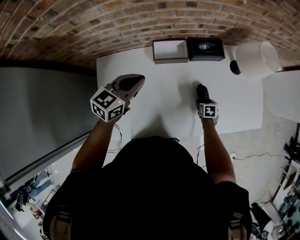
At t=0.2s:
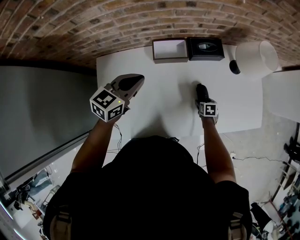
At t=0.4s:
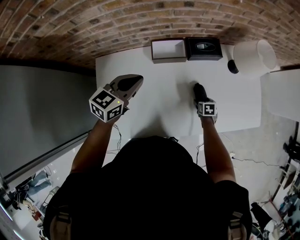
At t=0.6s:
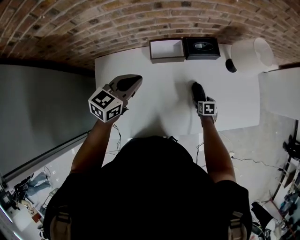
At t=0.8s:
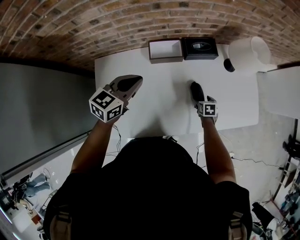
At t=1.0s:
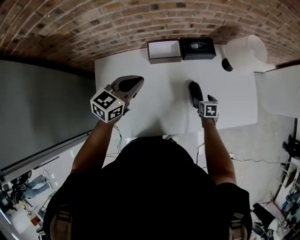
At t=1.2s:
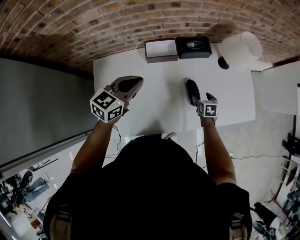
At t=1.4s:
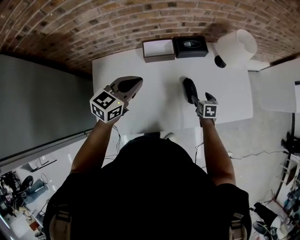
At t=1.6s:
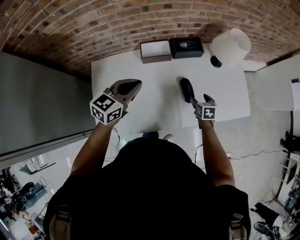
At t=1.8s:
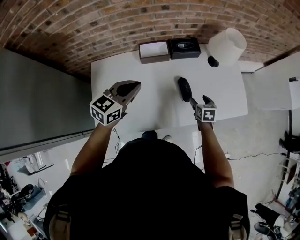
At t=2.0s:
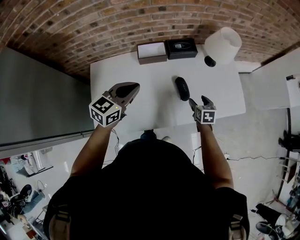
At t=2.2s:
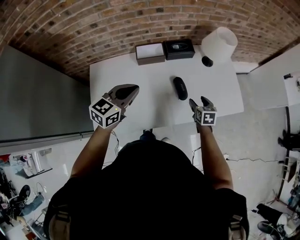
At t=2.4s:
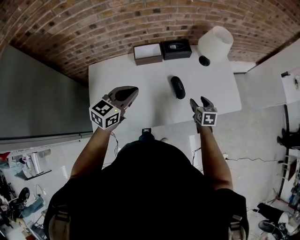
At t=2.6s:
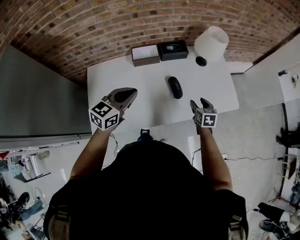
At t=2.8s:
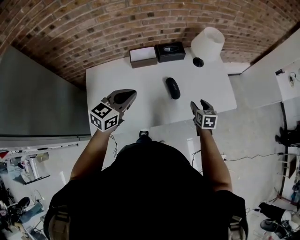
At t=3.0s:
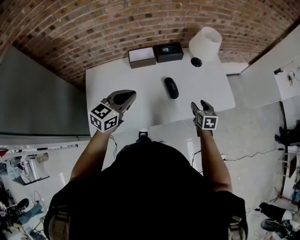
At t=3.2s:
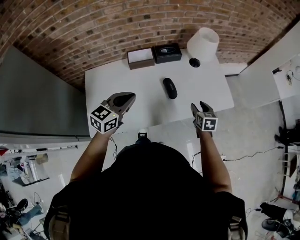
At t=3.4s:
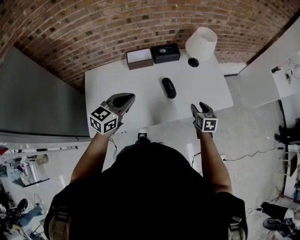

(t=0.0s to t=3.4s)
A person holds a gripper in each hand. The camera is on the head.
t=0.0s - t=1.6s: The right gripper is displaced upward by approximately 15 cm, while the left gripper travels backward, to the right and upward by some 15 cm.
t=1.6s - t=3.4s: The left gripper moves backward and to the right, roughly 15 cm. The right gripper shifts roughly 20 cm upward, to the right and backward, and closes its fingers.

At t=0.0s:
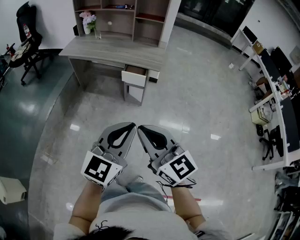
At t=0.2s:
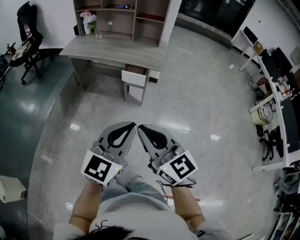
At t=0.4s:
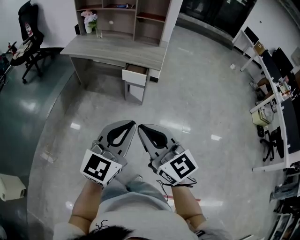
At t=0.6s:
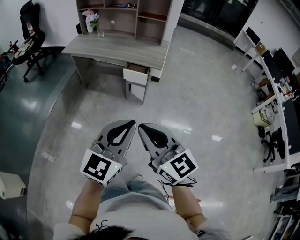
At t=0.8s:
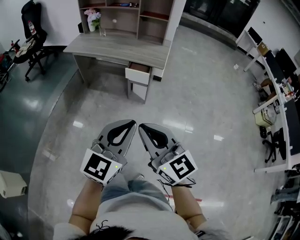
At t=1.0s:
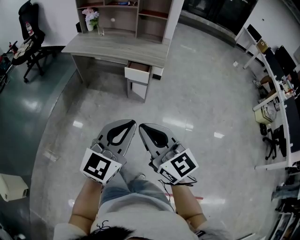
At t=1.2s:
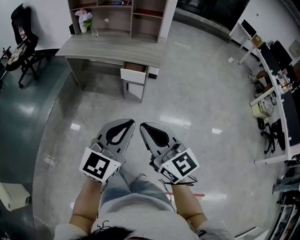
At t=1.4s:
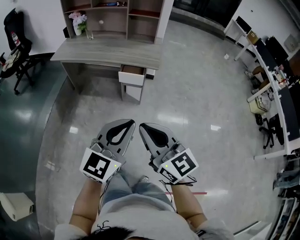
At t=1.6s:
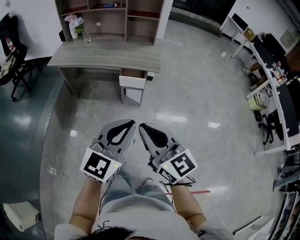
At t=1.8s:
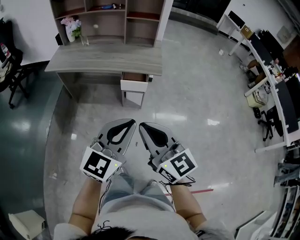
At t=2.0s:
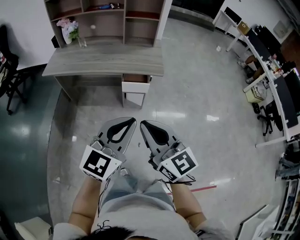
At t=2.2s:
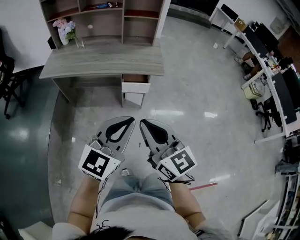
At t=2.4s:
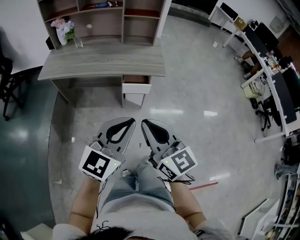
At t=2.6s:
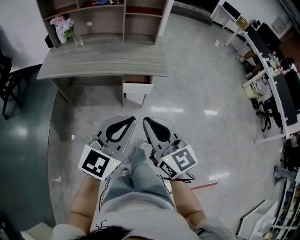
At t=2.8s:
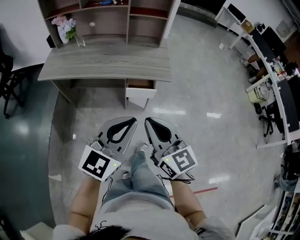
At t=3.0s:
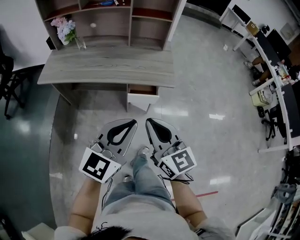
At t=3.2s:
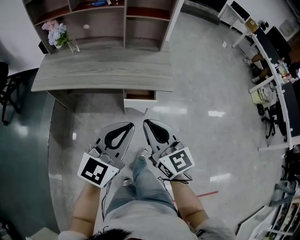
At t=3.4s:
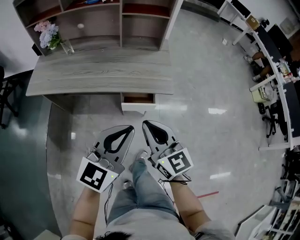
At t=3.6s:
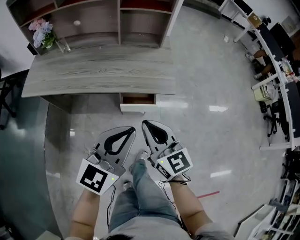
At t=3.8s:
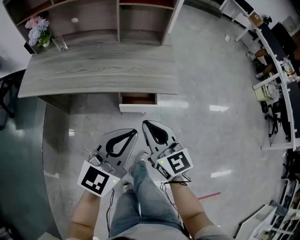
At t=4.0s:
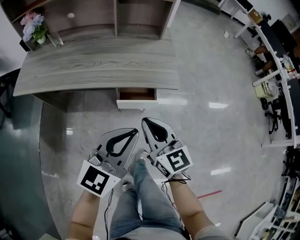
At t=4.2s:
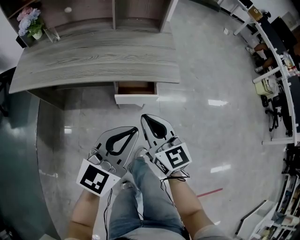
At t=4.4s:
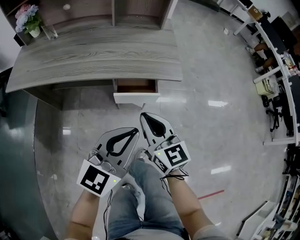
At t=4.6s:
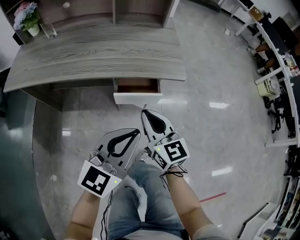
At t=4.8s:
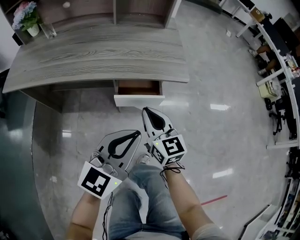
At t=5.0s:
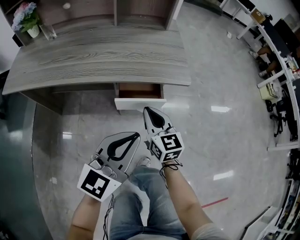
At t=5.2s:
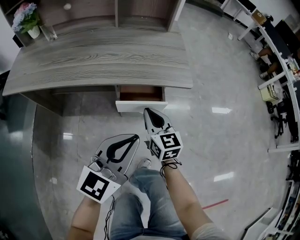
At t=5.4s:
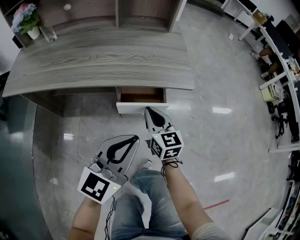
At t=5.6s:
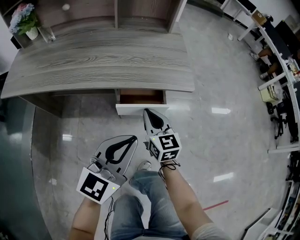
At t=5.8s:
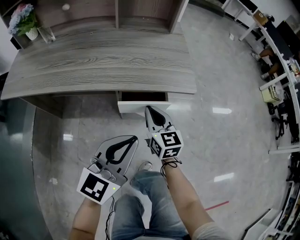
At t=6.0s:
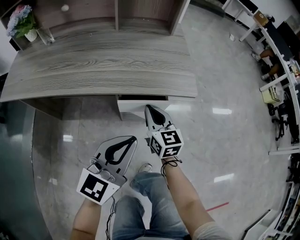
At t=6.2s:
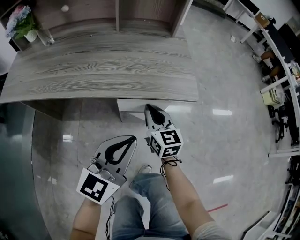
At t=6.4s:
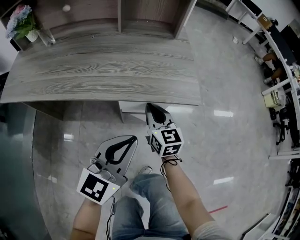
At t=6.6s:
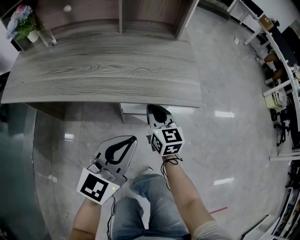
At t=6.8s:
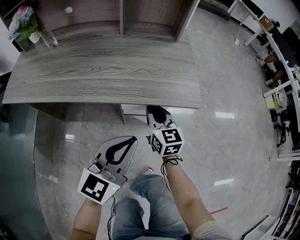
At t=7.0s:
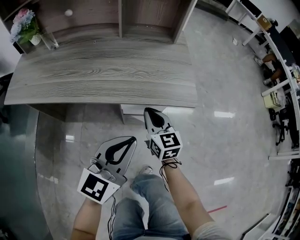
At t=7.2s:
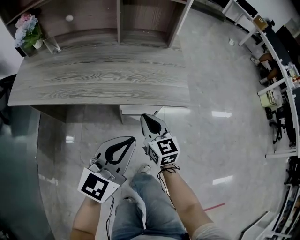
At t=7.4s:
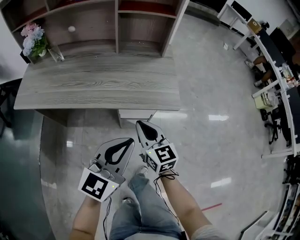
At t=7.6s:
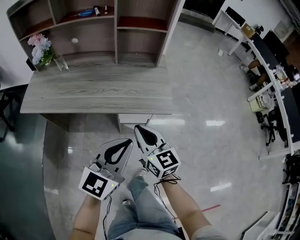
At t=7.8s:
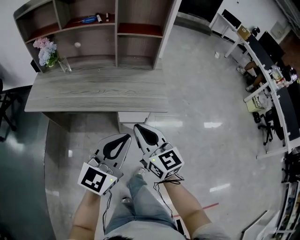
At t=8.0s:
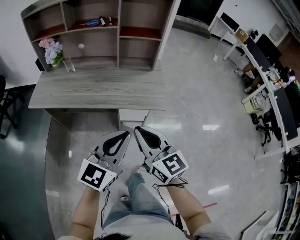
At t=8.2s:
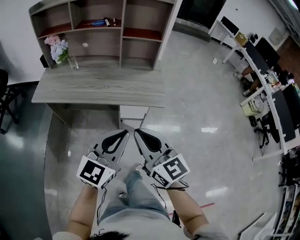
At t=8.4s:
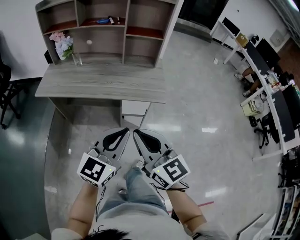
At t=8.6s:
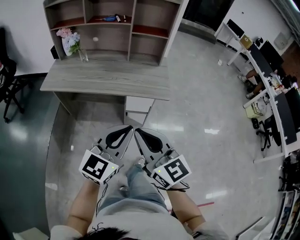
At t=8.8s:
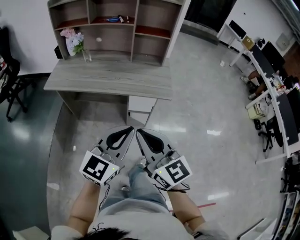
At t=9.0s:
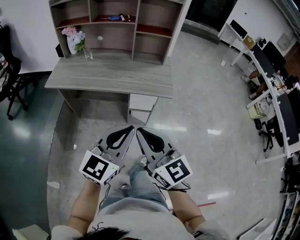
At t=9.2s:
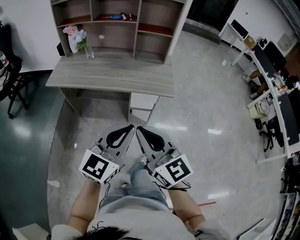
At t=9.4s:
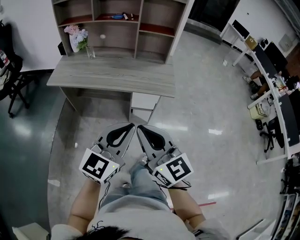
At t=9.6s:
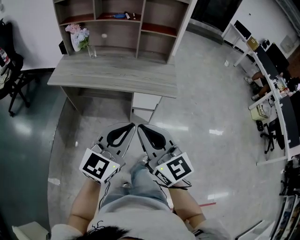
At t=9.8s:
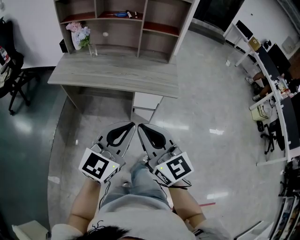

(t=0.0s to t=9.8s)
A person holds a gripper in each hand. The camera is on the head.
t=0.0s - t=1.4s: The two grippers go roughly 5 cm forward.
t=1.4s - t=2.8s: The two grippers go about 25 cm forward and to the left.
t=2.8s - t=4.2s: The grippers both shift downward and forward by roughly 25 cm.
t=4.2s - t=5.6s: The left gripper heads downward, covering some 10 cm, while the right gripper heads downward and forward, covering some 20 cm.
t=5.6s - t=7.0s: The right gripper heads forward, covering some 5 cm. The left gripper moves approximately 5 cm.
t=7.0s - t=8.4s: The left gripper goes about 30 cm upward and backward. Meanwhile the right gripper shifts roughly 50 cm upward and backward, and swivels approximately 20 degrees.
t=8.4s - t=9.8s: The left gripper shifts by roughly 5 cm.

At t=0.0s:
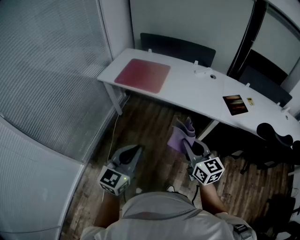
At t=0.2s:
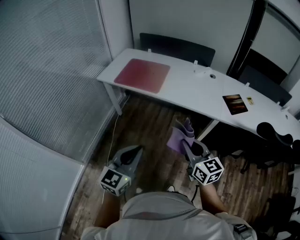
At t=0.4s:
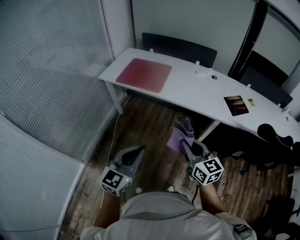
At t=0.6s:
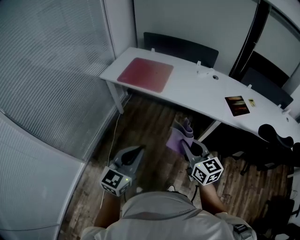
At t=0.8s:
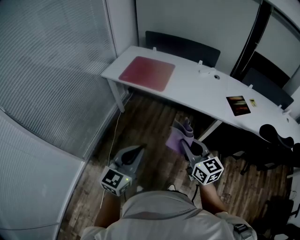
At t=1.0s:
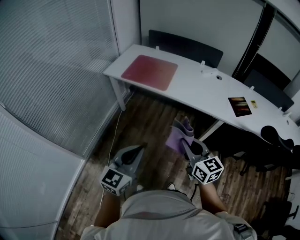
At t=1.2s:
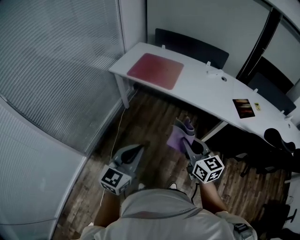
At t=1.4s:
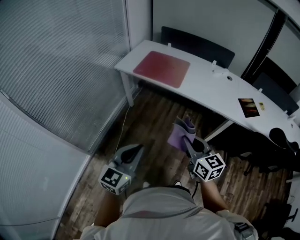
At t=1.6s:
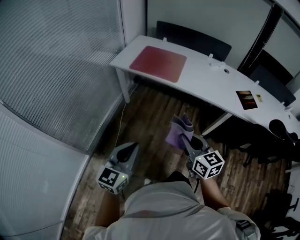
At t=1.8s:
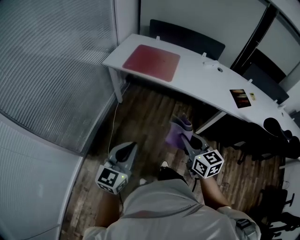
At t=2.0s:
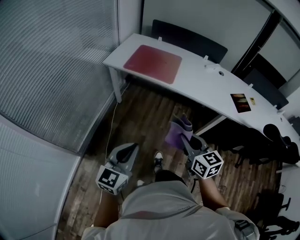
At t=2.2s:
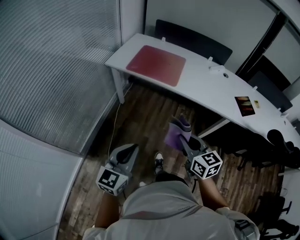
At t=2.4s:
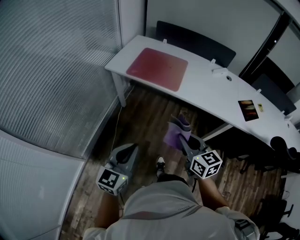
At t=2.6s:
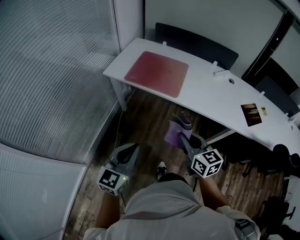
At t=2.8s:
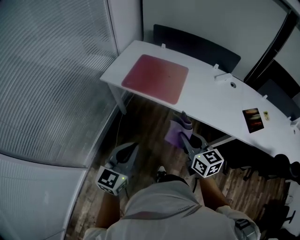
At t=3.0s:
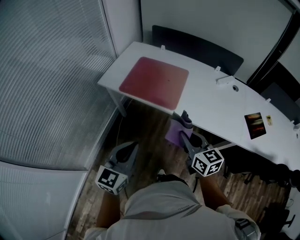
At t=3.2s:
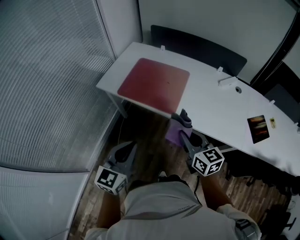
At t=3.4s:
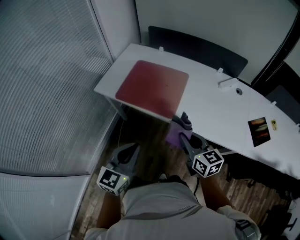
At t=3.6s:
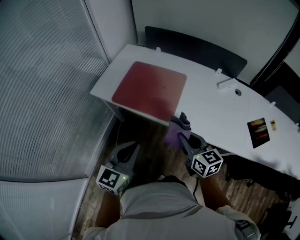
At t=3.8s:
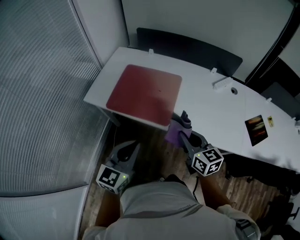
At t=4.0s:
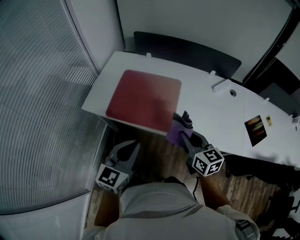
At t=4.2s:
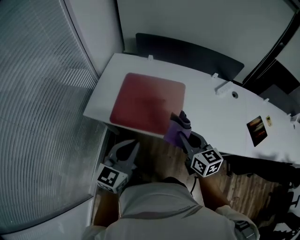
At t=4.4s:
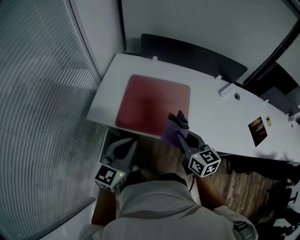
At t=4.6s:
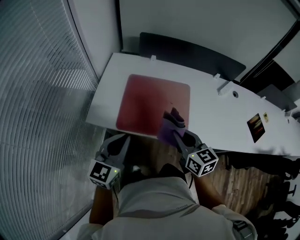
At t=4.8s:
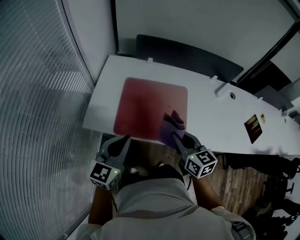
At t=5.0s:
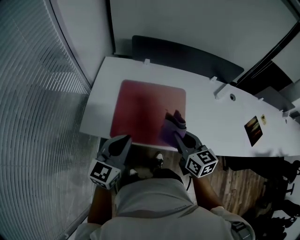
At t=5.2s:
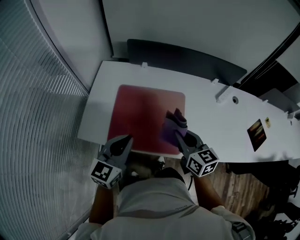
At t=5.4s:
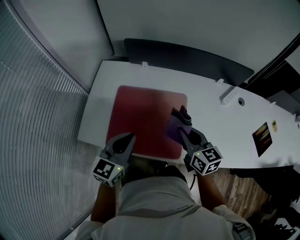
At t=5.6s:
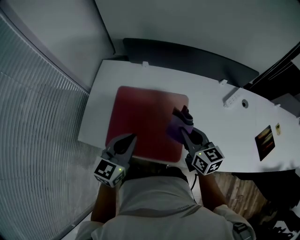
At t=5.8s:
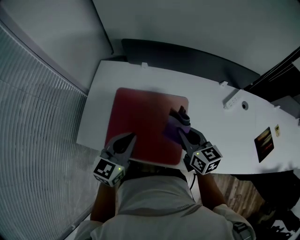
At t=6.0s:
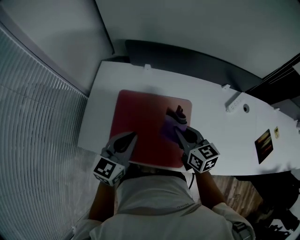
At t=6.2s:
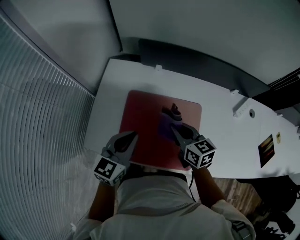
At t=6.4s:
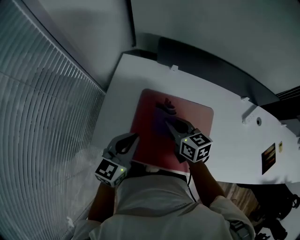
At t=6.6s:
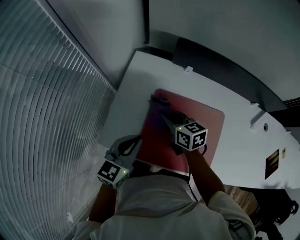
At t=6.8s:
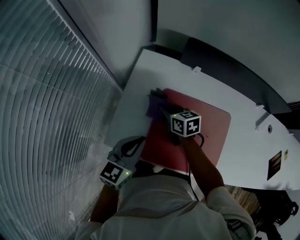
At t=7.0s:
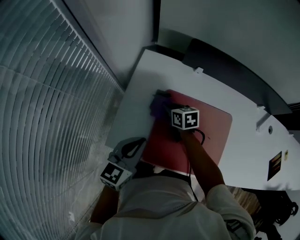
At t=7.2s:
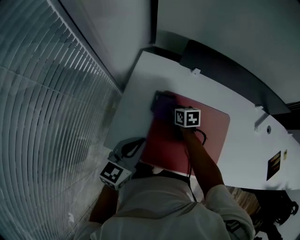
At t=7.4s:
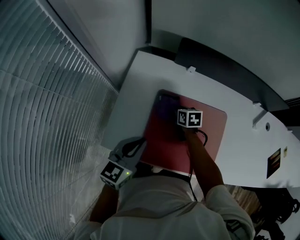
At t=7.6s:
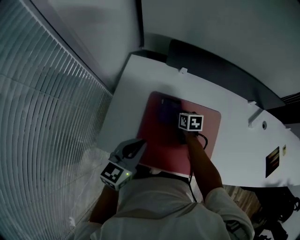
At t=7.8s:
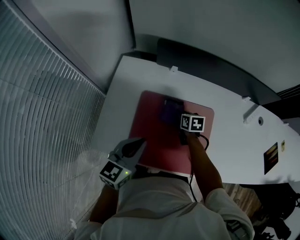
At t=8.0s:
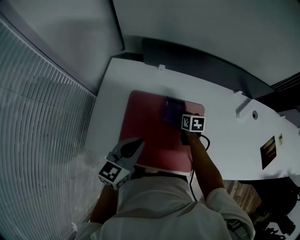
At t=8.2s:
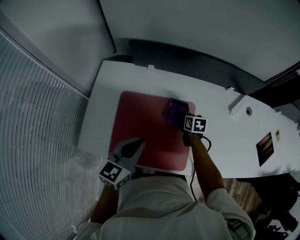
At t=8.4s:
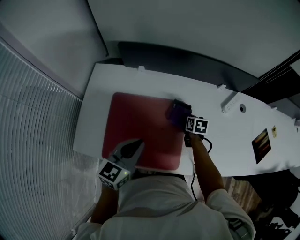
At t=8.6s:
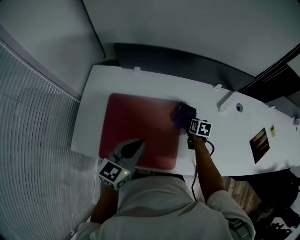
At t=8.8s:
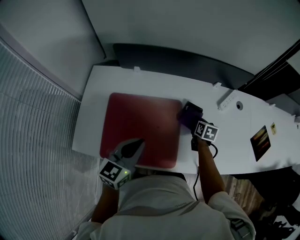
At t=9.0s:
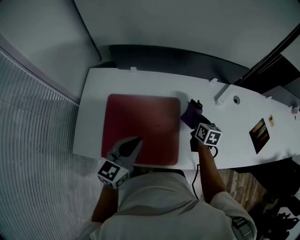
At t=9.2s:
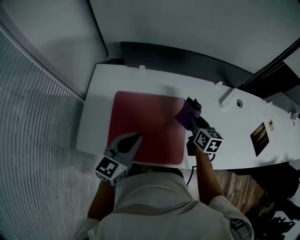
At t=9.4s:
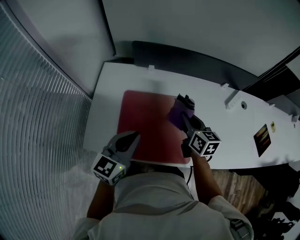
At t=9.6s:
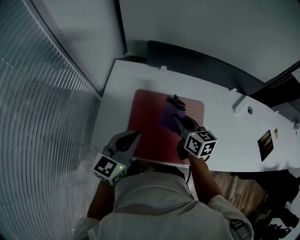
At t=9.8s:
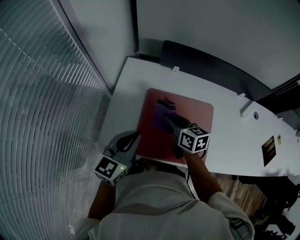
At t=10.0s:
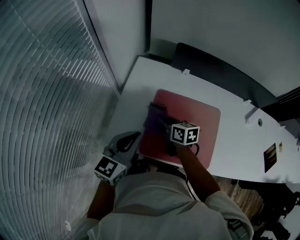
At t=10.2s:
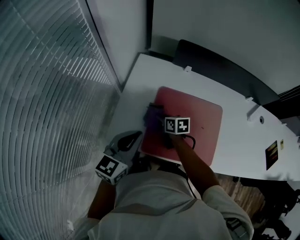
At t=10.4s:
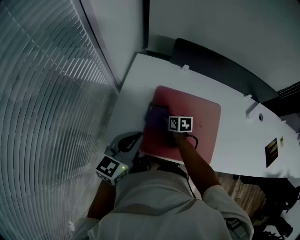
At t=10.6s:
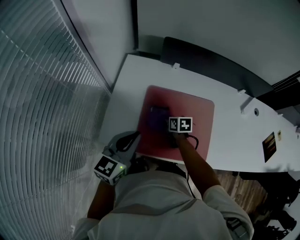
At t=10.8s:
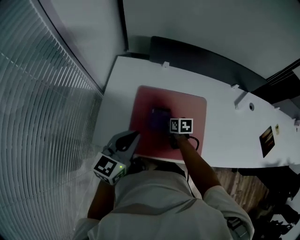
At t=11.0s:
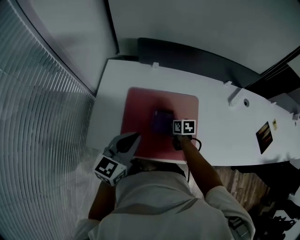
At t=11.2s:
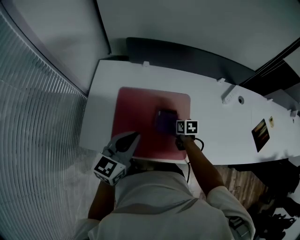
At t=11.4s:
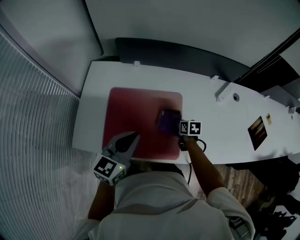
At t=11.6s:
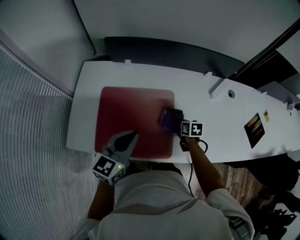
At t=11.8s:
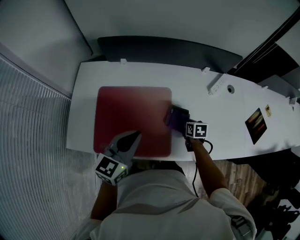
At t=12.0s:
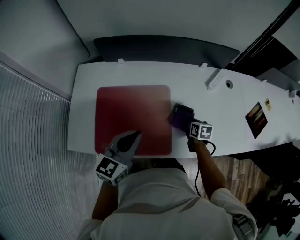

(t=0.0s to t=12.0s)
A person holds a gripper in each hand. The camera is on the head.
t=0.0s - t=1.6s: Both grippers move to the left, about 20 cm.
t=1.6s - t=3.0s: Both grippers move forward, about 30 cm.
t=3.0s - t=4.4s: The right gripper goes some 30 cm forward and to the left; the left gripper shifts roughly 30 cm forward.
t=4.4s - t=6.0s: Both grippers move forward, approximately 25 cm.
t=6.0s - t=7.6s: The right gripper goes some 30 cm downward, forward and to the left, and turns by roughly 30 degrees. Meanwhile the left gripper moves to the left, about 15 cm.
t=7.6s - t=9.0s: The right gripper shifts some 35 cm to the right, and turns by some 30 degrees. Meanwhile the left gripper goes about 20 cm to the right.
t=9.0s - t=10.4s: The left gripper shifts by some 25 cm, while the right gripper changes place by some 40 cm, and changes its angle by roughly 30 degrees.
t=10.4s - t=12.0s: The left gripper goes approximately 30 cm to the right, while the right gripper shifts about 50 cm to the right, and turns by approximately 20 degrees.
